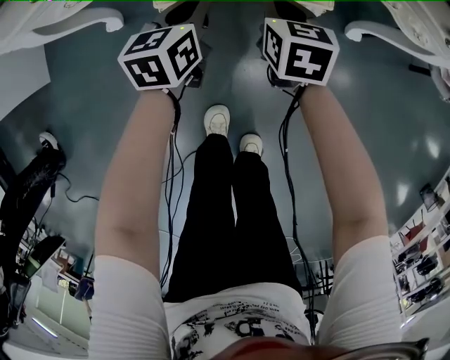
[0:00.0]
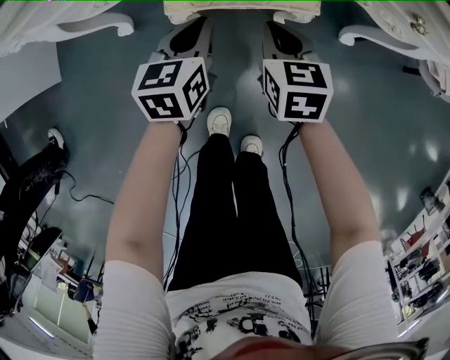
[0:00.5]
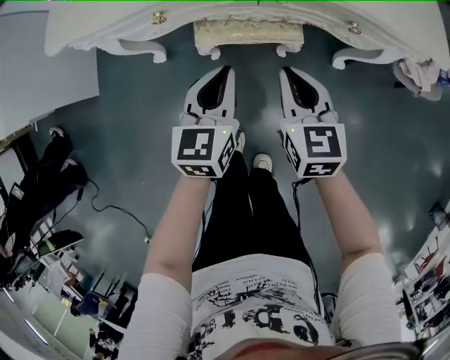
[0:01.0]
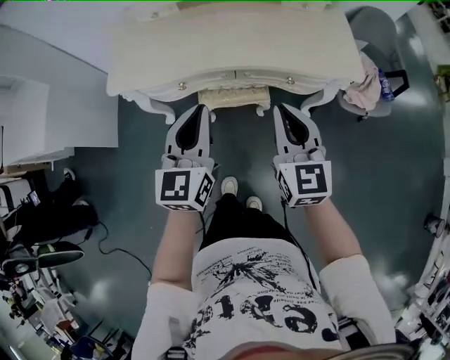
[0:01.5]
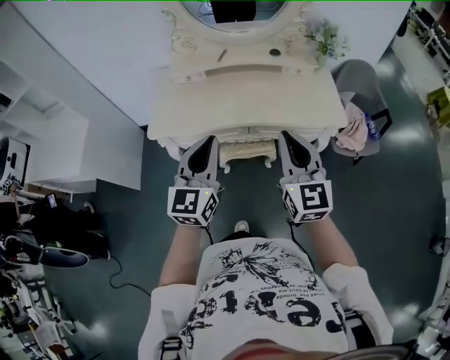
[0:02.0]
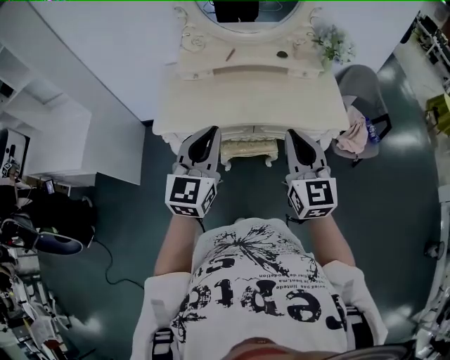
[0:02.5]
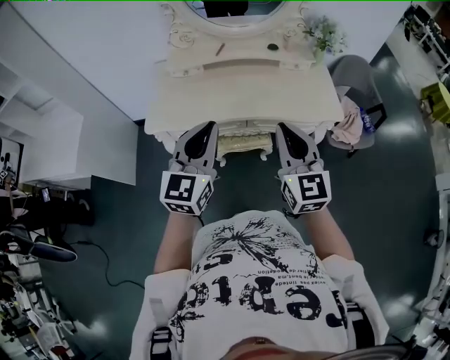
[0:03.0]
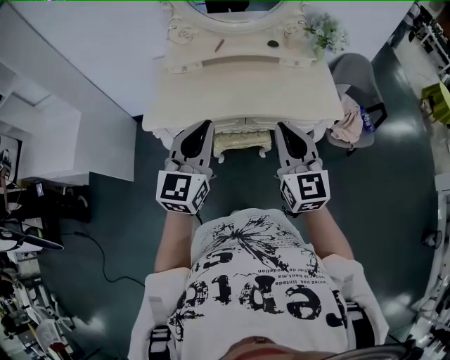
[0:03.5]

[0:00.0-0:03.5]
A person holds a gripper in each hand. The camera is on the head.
0:00.0 to 0:02.0: Both grippers move upward, approximately 70 cm. The right gripper tilts its fingers approximately 50 degrees upward, while the left gripper tilts its fingers about 30 degrees upward.
0:02.0 to 0:03.5: The grippers stay close to where they were, moving slightly.

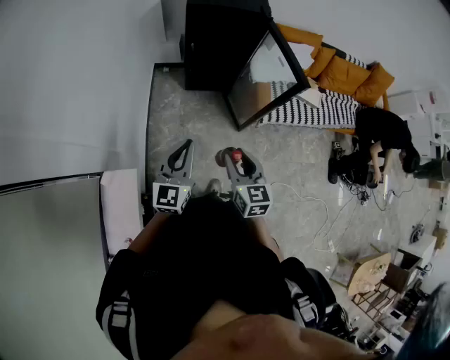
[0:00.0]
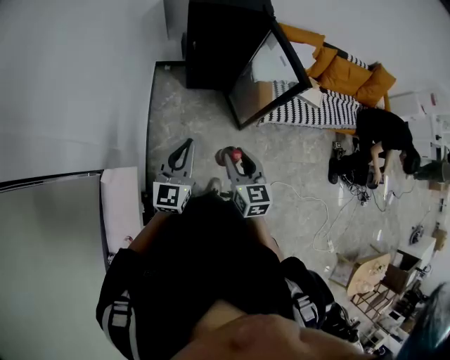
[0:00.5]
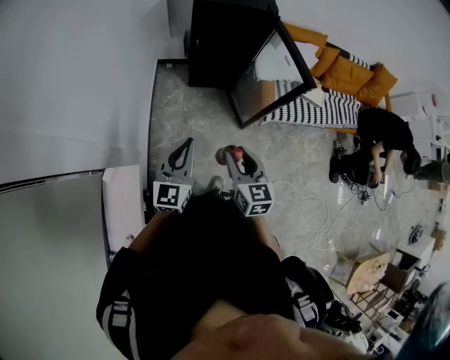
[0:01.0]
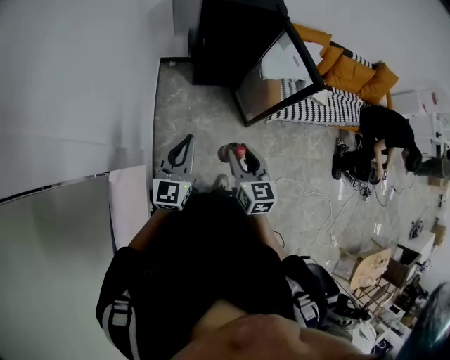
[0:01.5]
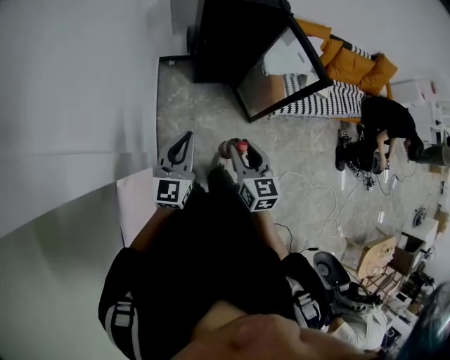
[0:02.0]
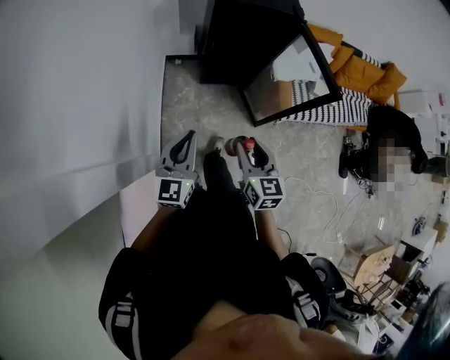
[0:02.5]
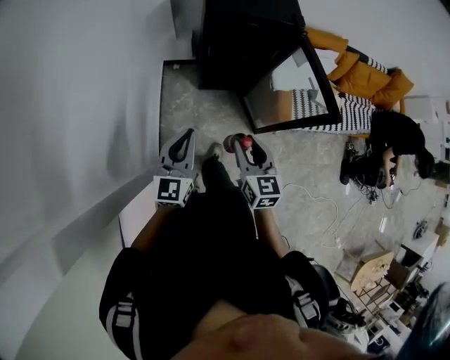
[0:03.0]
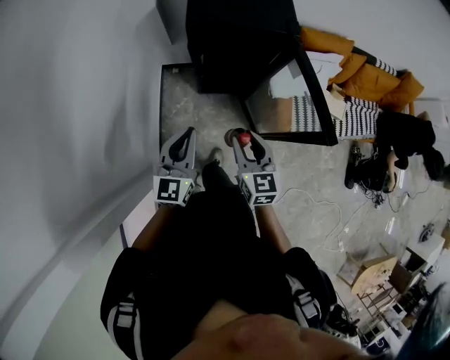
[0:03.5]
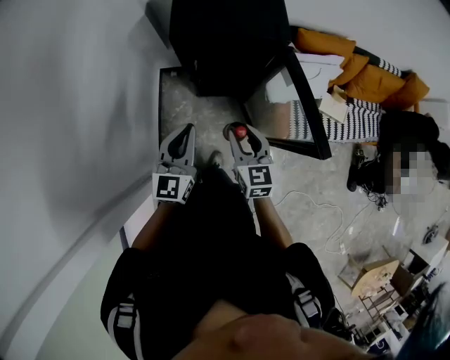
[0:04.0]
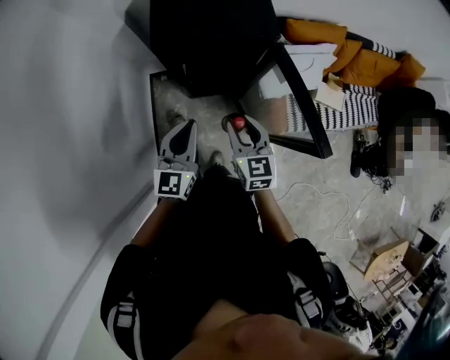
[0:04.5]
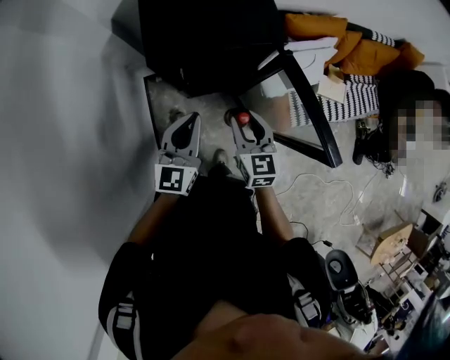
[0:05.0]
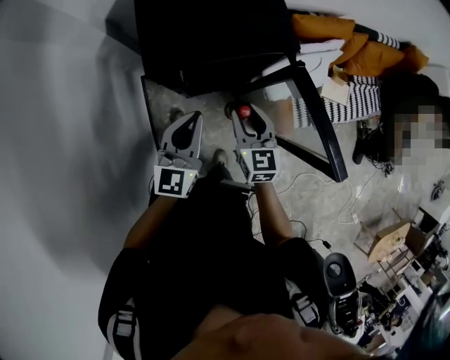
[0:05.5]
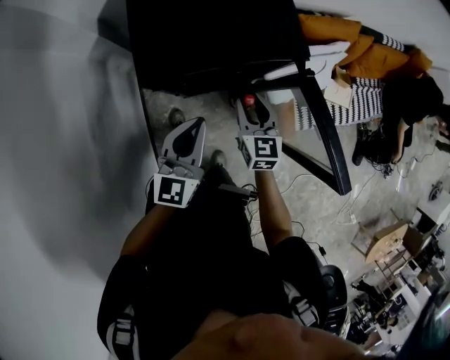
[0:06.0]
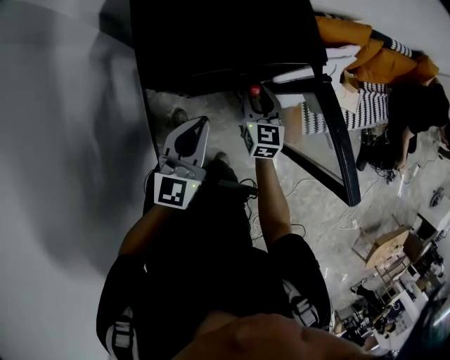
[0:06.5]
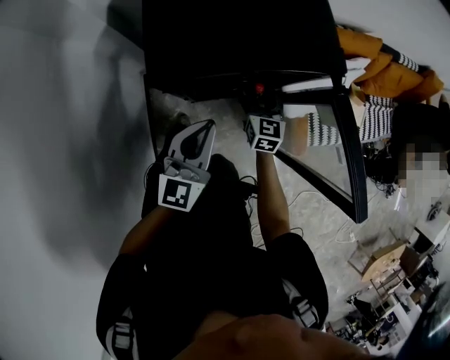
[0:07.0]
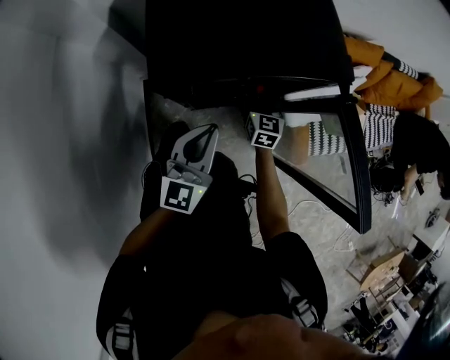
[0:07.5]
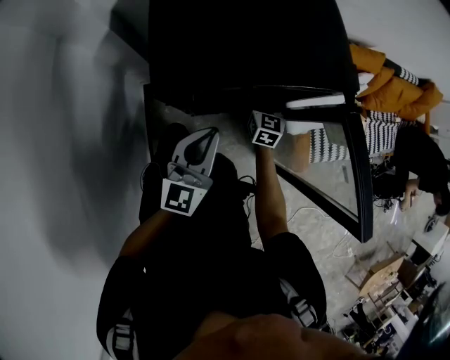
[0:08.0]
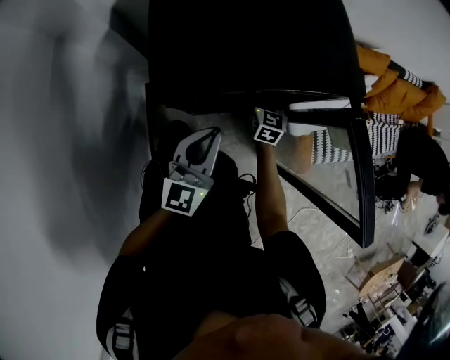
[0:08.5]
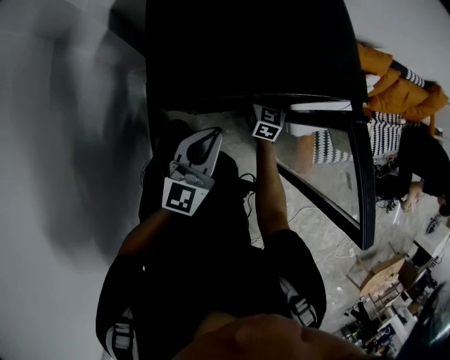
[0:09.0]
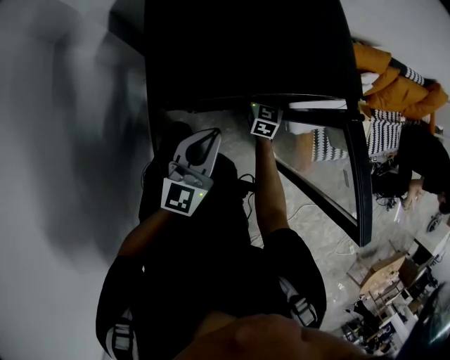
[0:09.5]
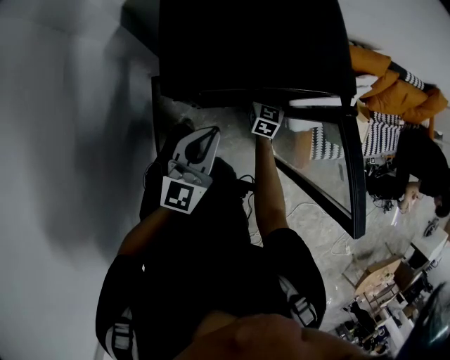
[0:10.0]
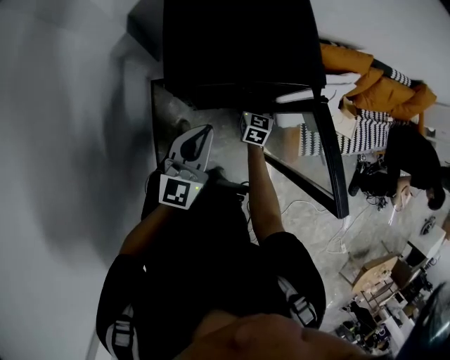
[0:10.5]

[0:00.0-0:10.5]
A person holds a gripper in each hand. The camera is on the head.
0:00.0 to 0:02.0: Both grippers travel together to the left, about 10 cm.
0:02.0 to 0:04.0: The left gripper heads forward and to the right, covering roughly 35 cm; the right gripper is displaced forward by approximately 35 cm.
0:04.0 to 0:06.5: The two grippers go approximately 30 cm forward and downward.
0:06.5 to 0:08.5: The right gripper goes roughly 15 cm downward and forward. The left gripper heads downward, covering about 10 cm.
0:08.5 to 0:10.5: The left gripper heads upward, covering roughly 10 cm. The right gripper travels upward and backward by roughly 10 cm.

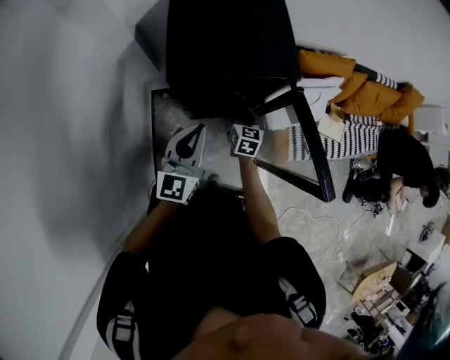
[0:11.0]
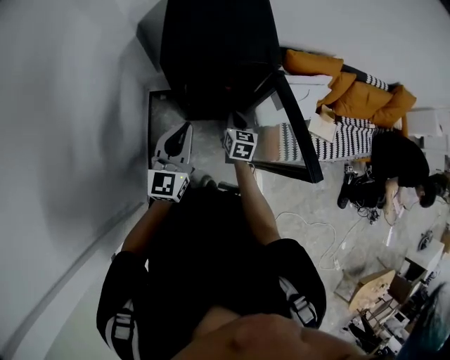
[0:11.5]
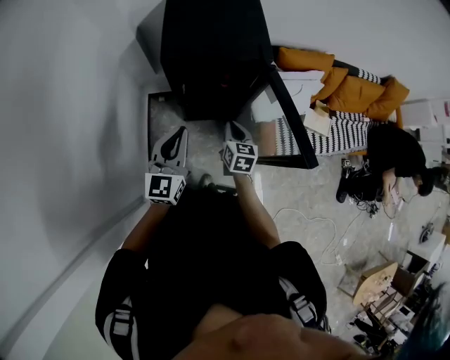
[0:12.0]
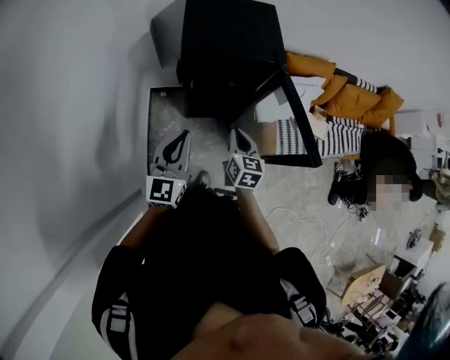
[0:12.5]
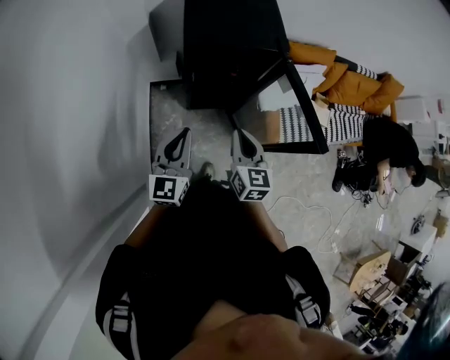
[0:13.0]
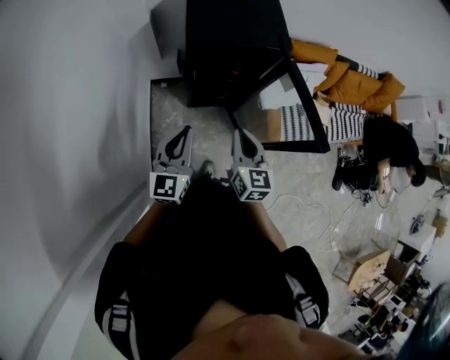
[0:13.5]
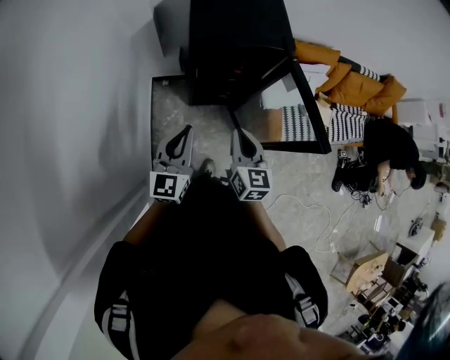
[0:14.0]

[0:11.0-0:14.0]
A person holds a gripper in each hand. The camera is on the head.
0:11.0 to 0:12.5: The right gripper goes roughly 25 cm backward and upward. The left gripper shifts approximately 15 cm backward.
0:12.5 to 0:14.0: The right gripper is displaced upward and backward by approximately 10 cm.

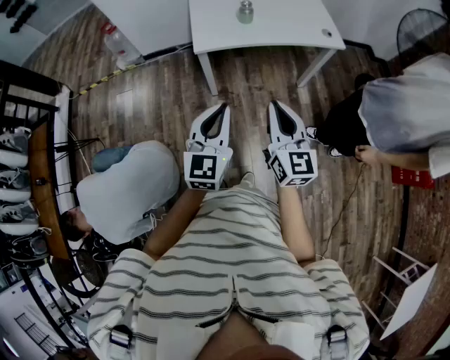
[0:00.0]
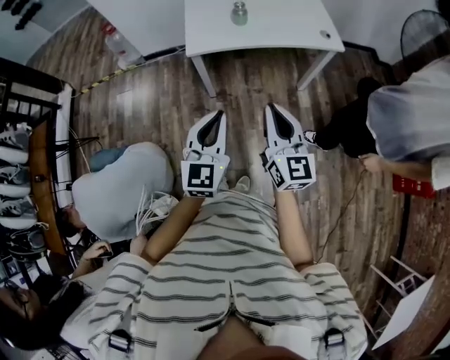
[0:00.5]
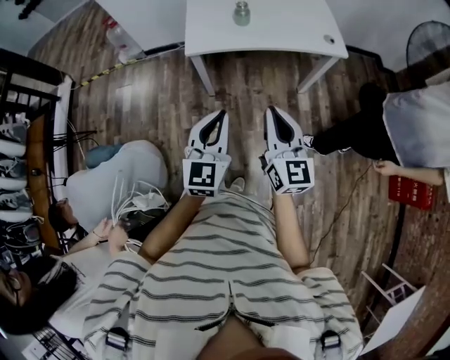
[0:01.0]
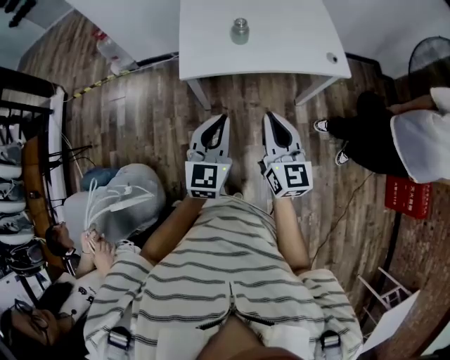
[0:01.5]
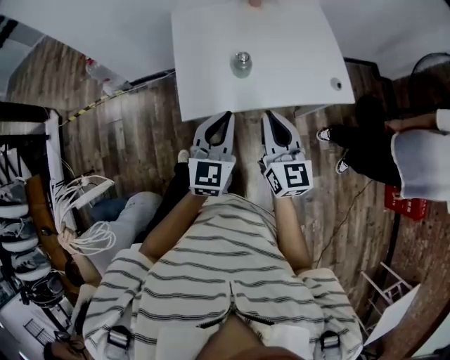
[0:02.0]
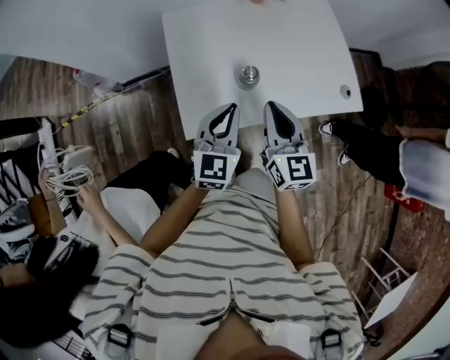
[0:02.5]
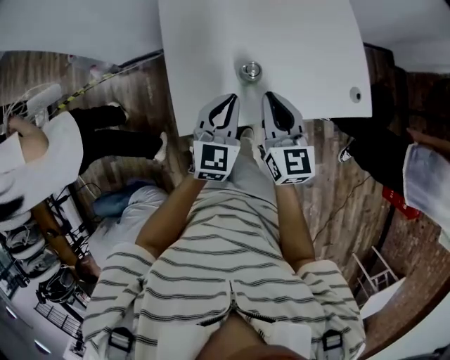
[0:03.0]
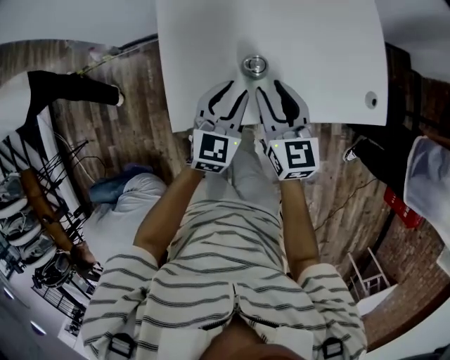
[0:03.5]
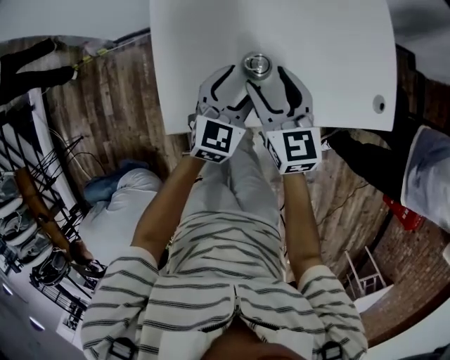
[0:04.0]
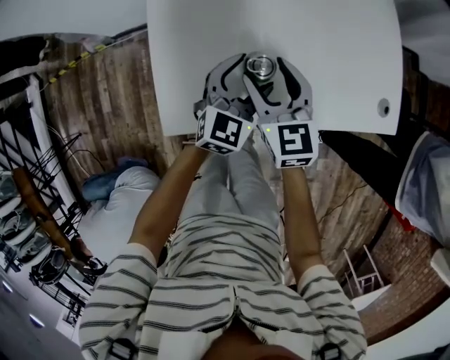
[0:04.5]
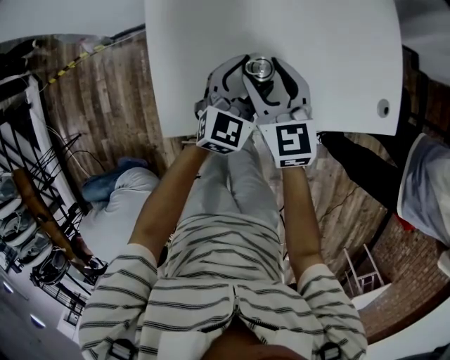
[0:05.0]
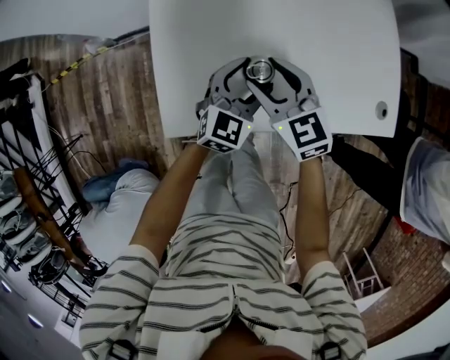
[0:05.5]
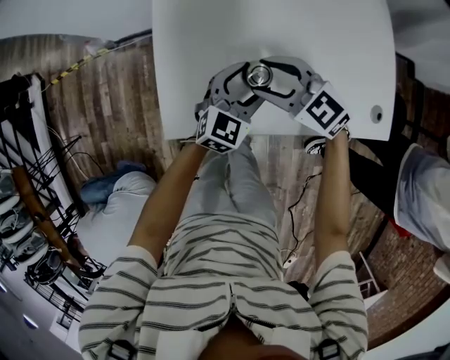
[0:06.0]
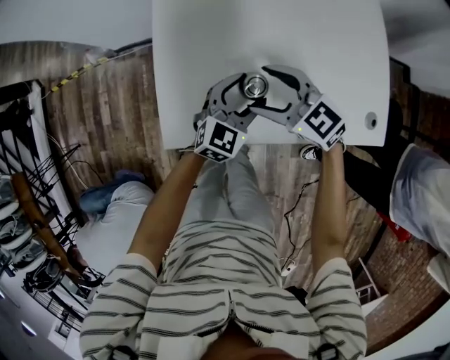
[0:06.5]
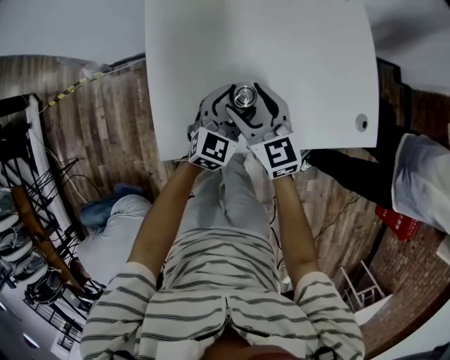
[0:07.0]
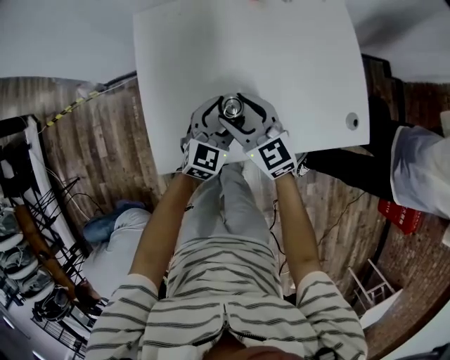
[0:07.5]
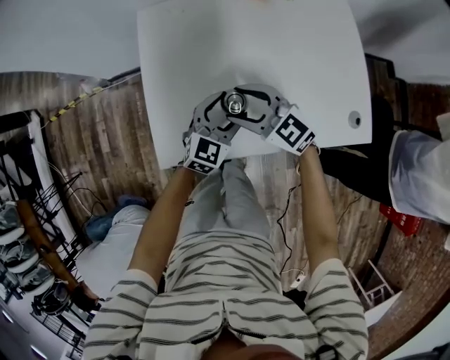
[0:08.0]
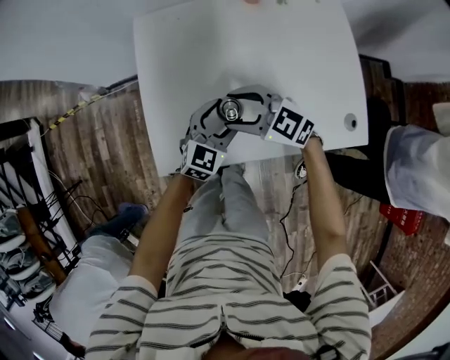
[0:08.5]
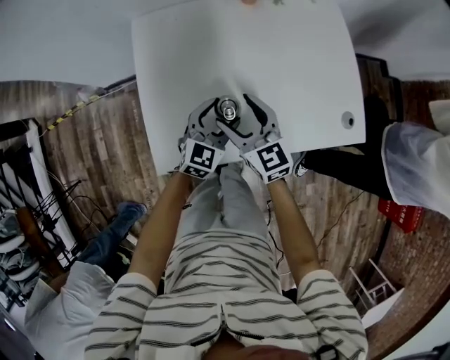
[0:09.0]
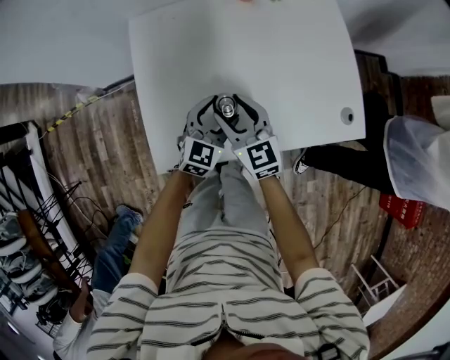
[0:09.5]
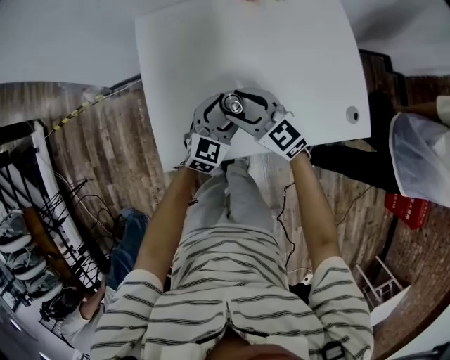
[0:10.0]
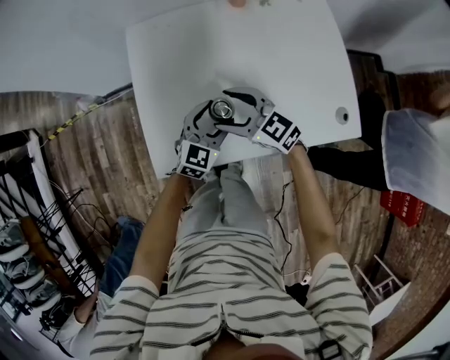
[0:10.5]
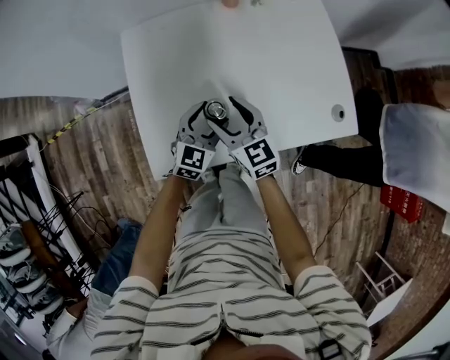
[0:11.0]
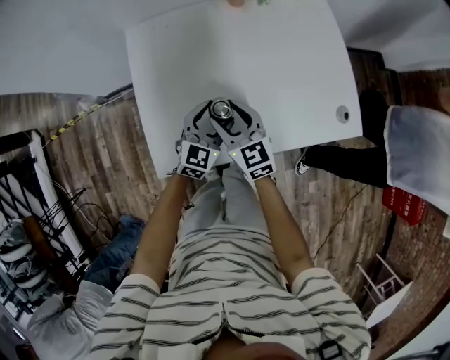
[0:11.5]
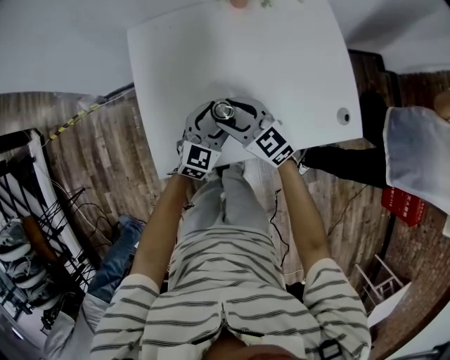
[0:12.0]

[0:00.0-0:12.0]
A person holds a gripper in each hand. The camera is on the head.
0:00.0 to 0:02.0: Both grippers travel together forward, some 35 cm.
0:02.0 to 0:04.0: Both grippers travel together forward and downward, about 30 cm. The right gripper turns by about 20 degrees, and opens up. The left gripper opens its fingers.
0:04.0 to 0:06.0: The right gripper swivels some 50 degrees.
